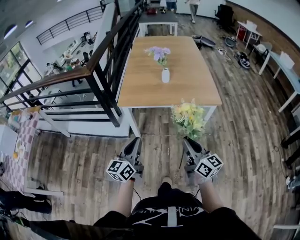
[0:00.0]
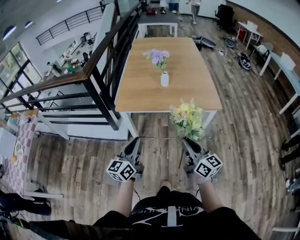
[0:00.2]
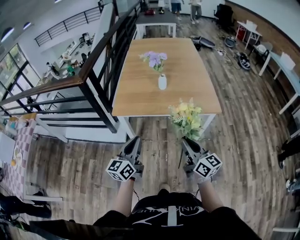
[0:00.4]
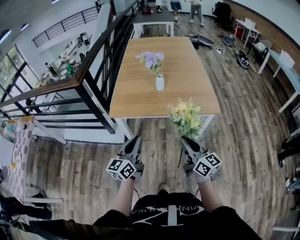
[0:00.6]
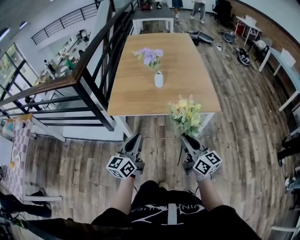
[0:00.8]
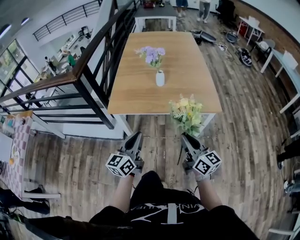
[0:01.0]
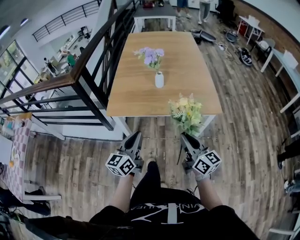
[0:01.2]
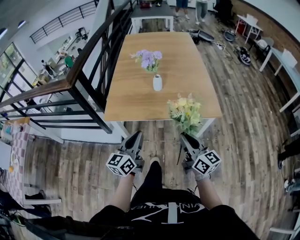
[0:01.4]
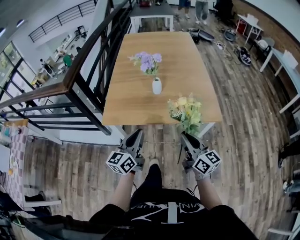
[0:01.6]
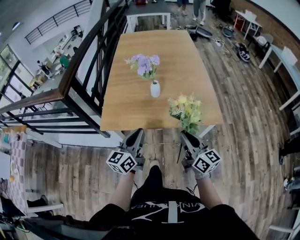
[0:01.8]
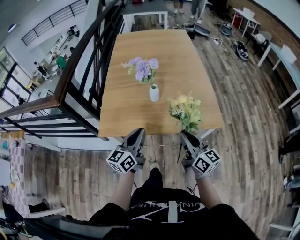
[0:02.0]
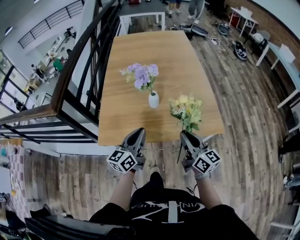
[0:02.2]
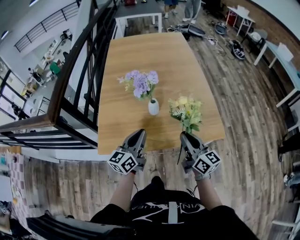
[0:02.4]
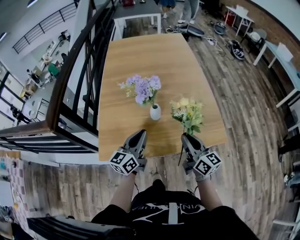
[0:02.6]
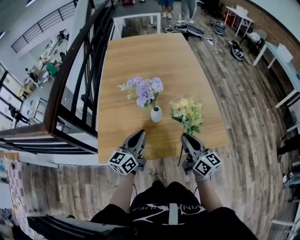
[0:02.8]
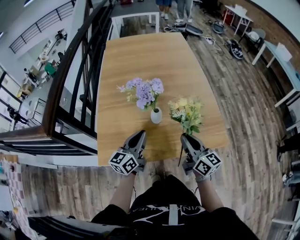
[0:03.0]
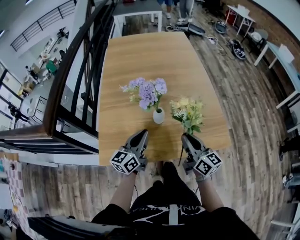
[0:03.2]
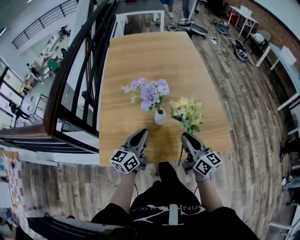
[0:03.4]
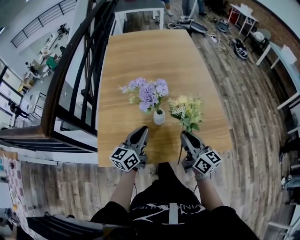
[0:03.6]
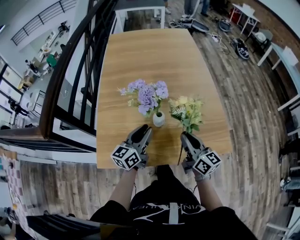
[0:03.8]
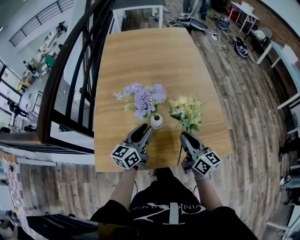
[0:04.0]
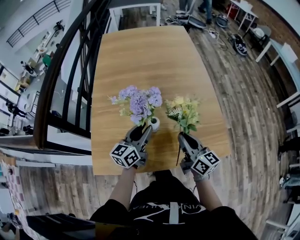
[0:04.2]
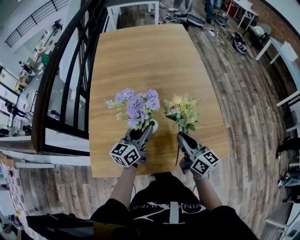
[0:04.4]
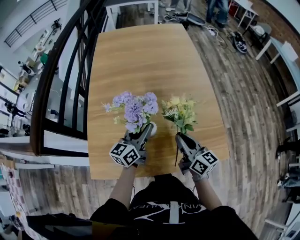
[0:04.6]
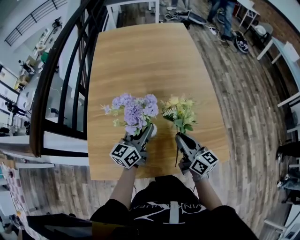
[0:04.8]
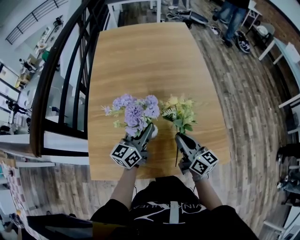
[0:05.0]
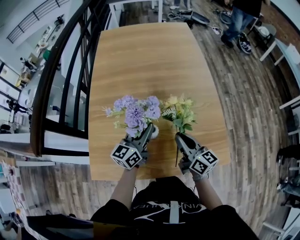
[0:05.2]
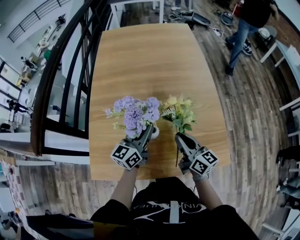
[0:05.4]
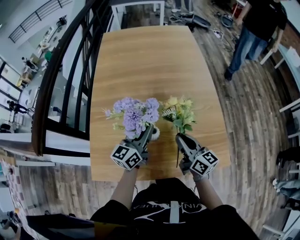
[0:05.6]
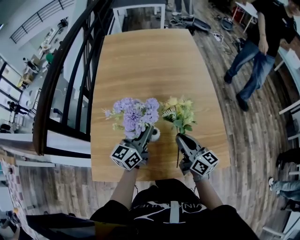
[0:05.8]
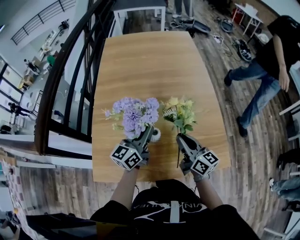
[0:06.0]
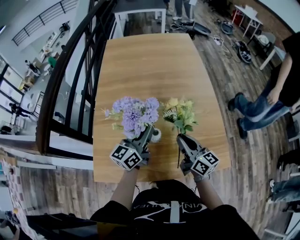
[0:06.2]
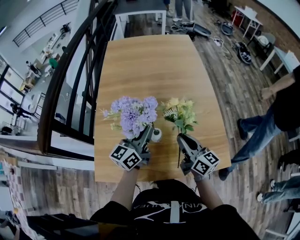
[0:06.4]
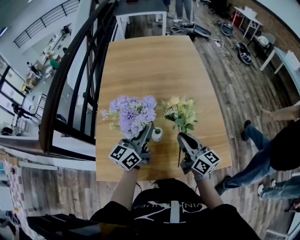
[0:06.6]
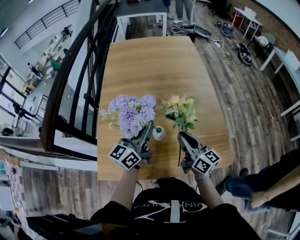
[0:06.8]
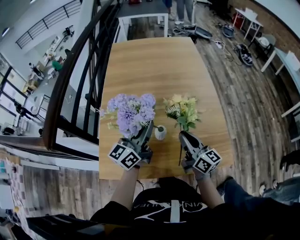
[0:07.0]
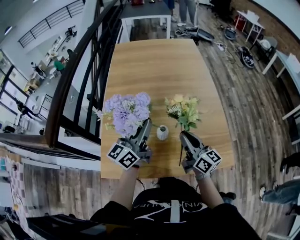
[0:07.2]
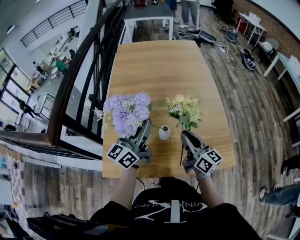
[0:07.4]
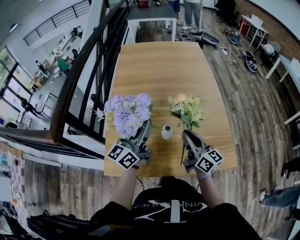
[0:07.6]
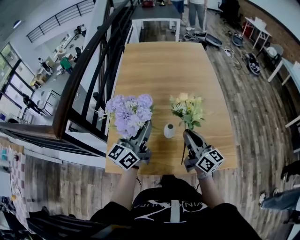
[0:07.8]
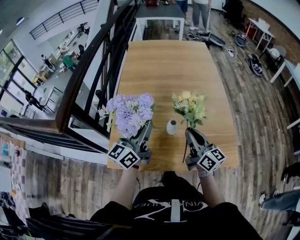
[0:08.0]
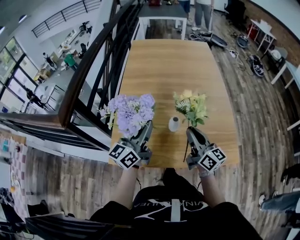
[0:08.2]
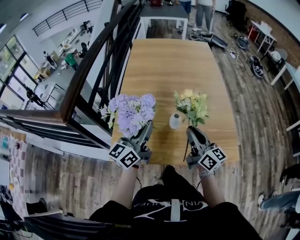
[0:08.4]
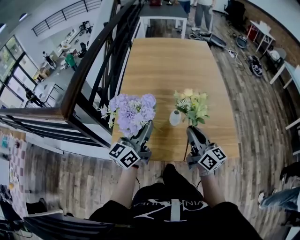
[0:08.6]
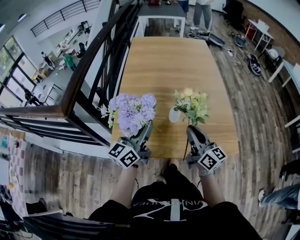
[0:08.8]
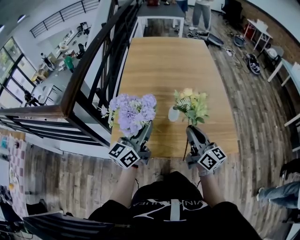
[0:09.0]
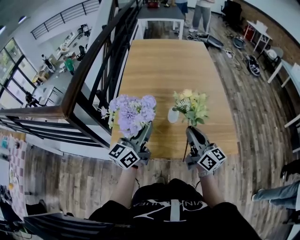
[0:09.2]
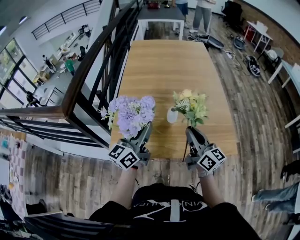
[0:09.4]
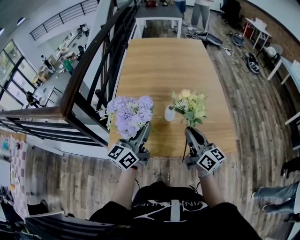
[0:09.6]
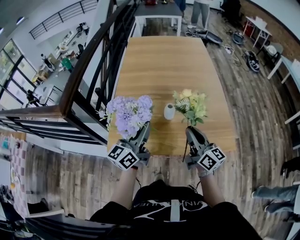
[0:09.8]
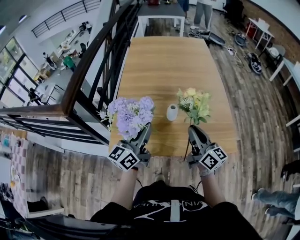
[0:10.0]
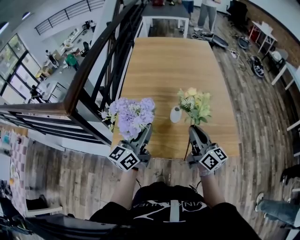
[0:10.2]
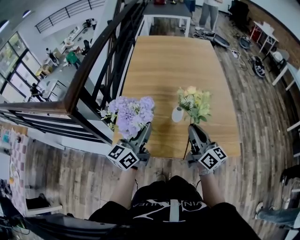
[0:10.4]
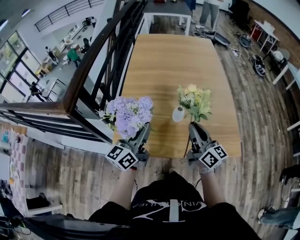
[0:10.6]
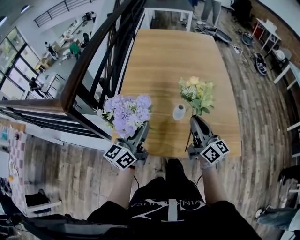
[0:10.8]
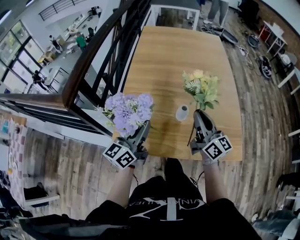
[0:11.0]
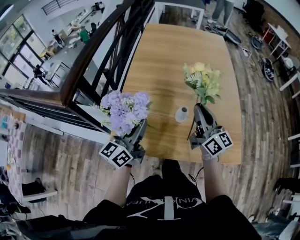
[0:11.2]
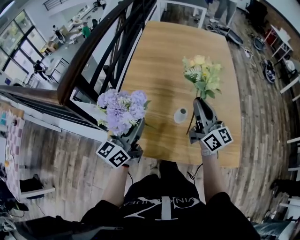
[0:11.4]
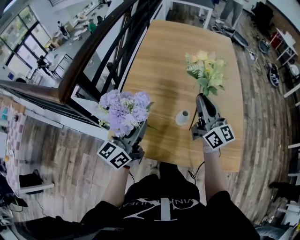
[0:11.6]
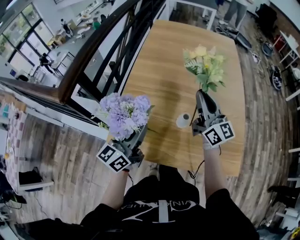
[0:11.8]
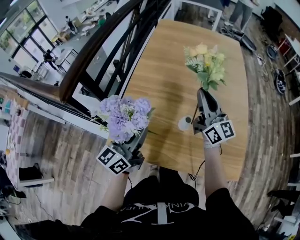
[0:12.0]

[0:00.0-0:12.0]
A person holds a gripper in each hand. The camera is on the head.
0:00.0 to 0:01.6: The right gripper moves forward, approximately 20 cm. The left gripper shifts about 20 cm forward and to the right.
0:01.6 to 0:03.0: Both grippers travel together forward, roughly 20 cm.
0:03.0 to 0:04.4: Both grippers move forward, about 10 cm. The left gripper opens its fingers.
0:04.4 to 0:06.0: The left gripper travels upward by approximately 5 cm, and closes its fingers.
0:06.0 to 0:07.6: The right gripper ends up about 5 cm from where it was, while the left gripper shifts approximately 10 cm upward and to the left.
0:07.6 to 0:09.0: Both grippers move backward, some 10 cm.
0:09.0 to 0:10.4: There are only small adjustments of the grippers.
0:10.4 to 0:12.0: The right gripper heads forward, covering approximately 20 cm, and changes its angle by approximately 20 degrees.

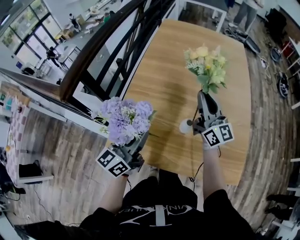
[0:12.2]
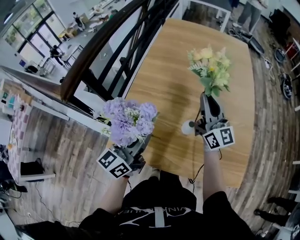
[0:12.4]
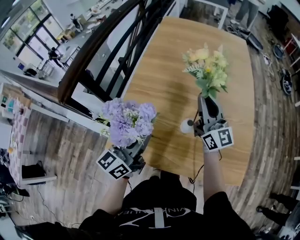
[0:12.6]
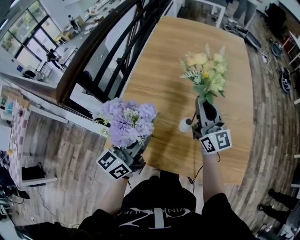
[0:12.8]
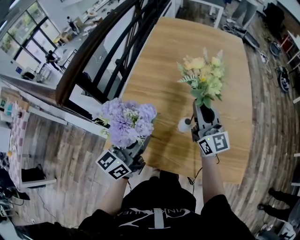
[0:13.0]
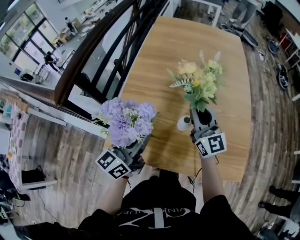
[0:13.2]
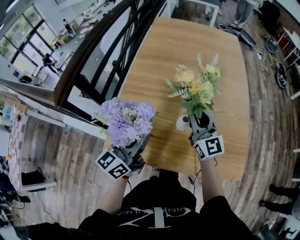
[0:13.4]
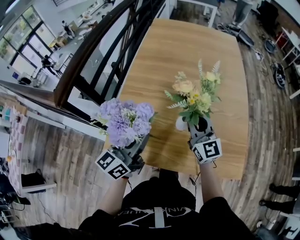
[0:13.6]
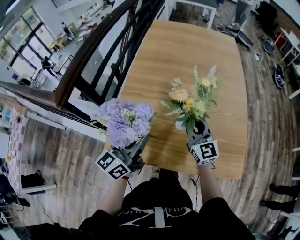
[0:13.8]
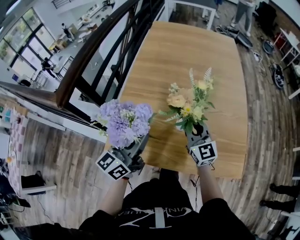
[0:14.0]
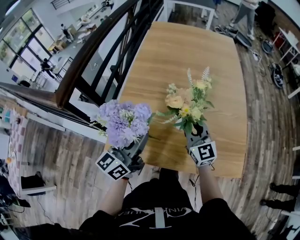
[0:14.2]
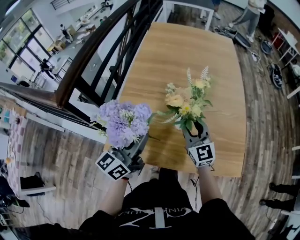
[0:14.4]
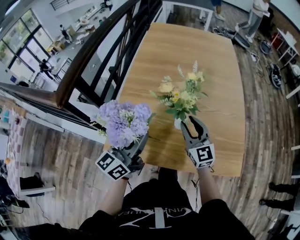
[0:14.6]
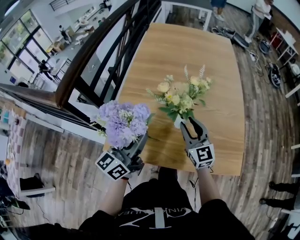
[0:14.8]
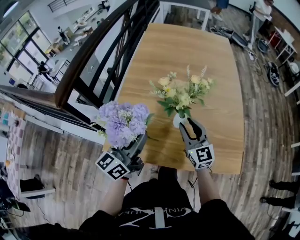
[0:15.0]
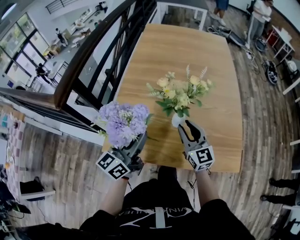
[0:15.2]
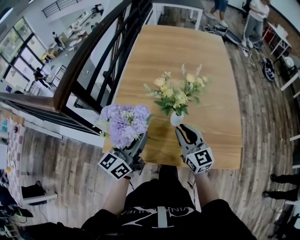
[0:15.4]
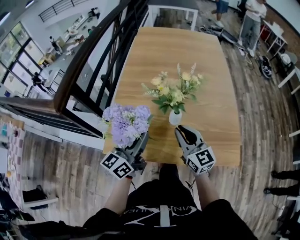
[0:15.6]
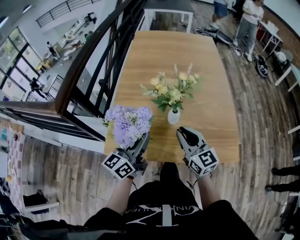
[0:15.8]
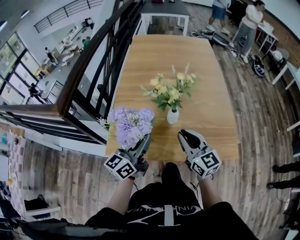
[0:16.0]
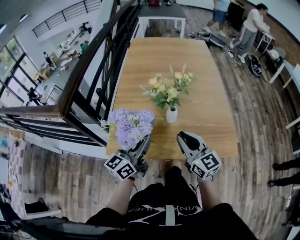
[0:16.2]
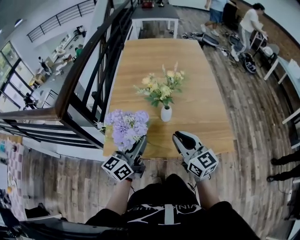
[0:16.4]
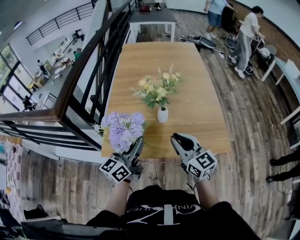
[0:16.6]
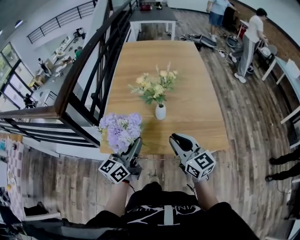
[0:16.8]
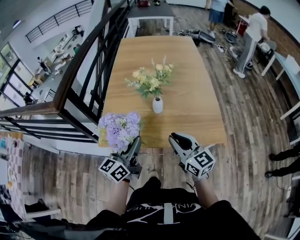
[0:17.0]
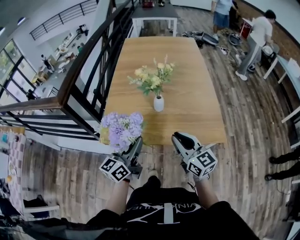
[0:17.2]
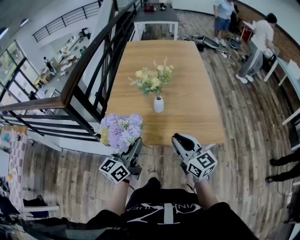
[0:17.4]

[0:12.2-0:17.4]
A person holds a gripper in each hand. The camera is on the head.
0:12.2 to 0:14.0: The right gripper goes roughly 10 cm downward and backward, and swivels approximately 30 degrees.
0:14.0 to 0:15.6: The right gripper goes approximately 10 cm backward.
0:15.6 to 0:17.4: Both grippers travel together backward, approximately 15 cm.

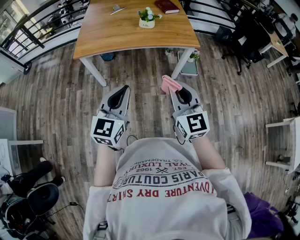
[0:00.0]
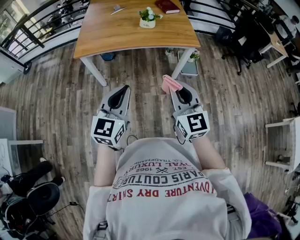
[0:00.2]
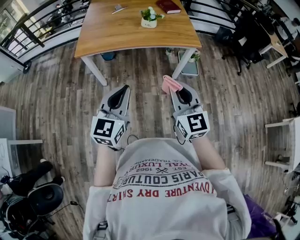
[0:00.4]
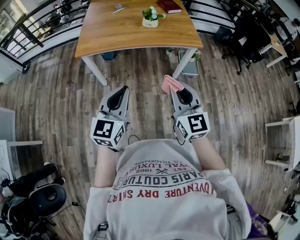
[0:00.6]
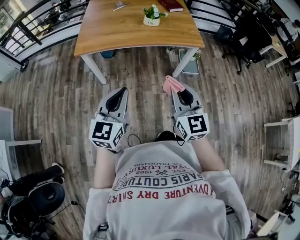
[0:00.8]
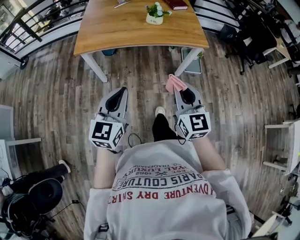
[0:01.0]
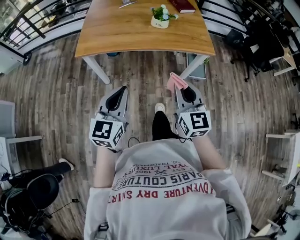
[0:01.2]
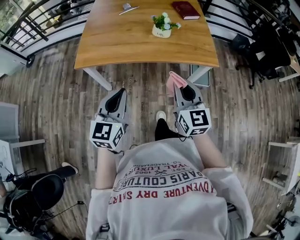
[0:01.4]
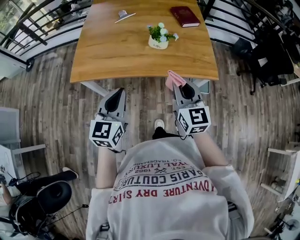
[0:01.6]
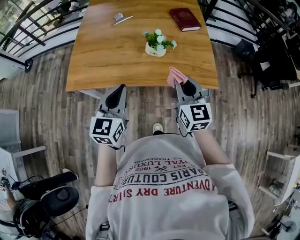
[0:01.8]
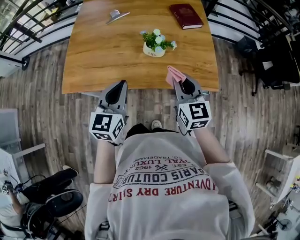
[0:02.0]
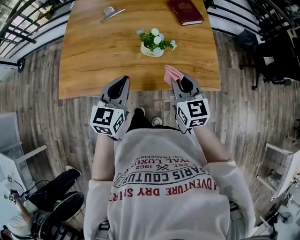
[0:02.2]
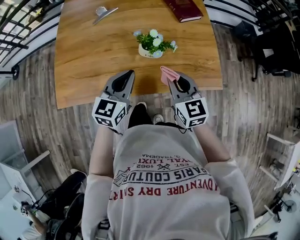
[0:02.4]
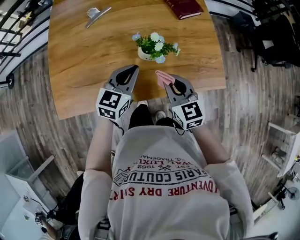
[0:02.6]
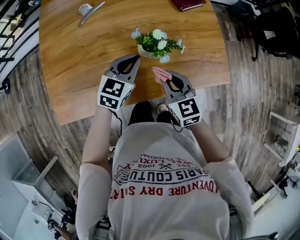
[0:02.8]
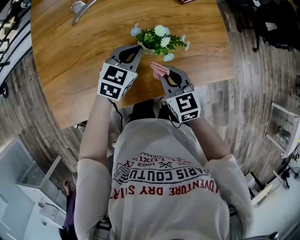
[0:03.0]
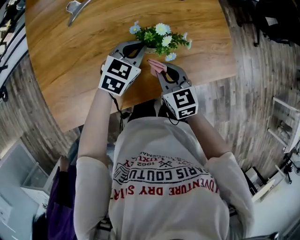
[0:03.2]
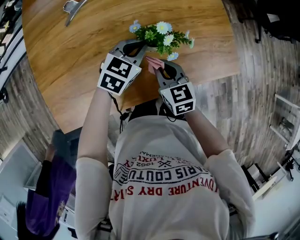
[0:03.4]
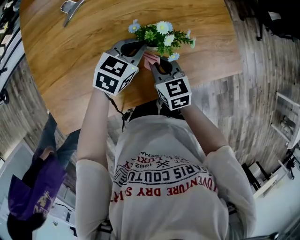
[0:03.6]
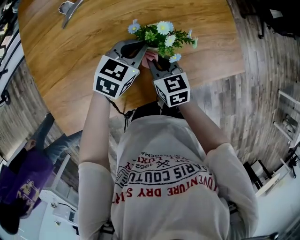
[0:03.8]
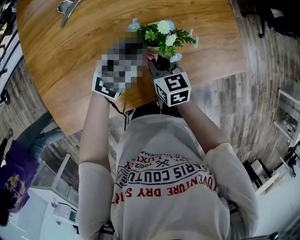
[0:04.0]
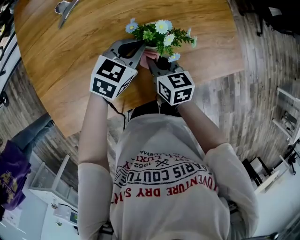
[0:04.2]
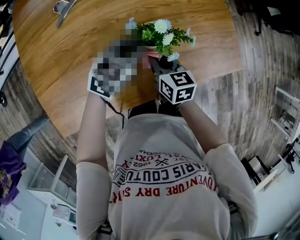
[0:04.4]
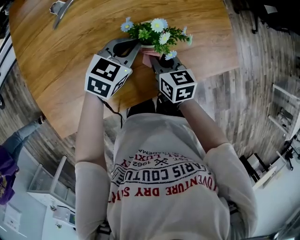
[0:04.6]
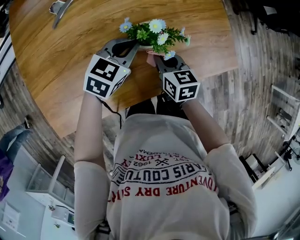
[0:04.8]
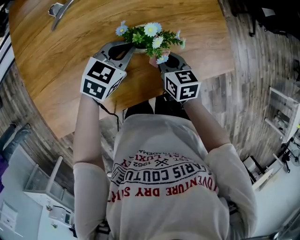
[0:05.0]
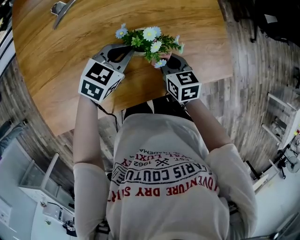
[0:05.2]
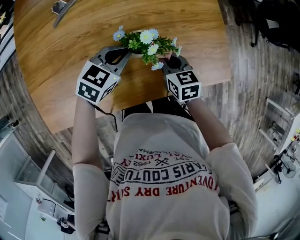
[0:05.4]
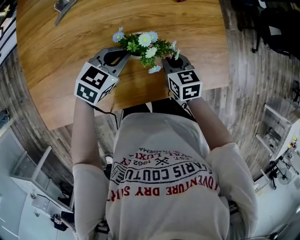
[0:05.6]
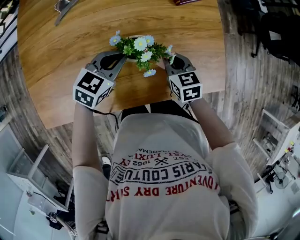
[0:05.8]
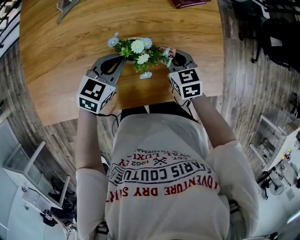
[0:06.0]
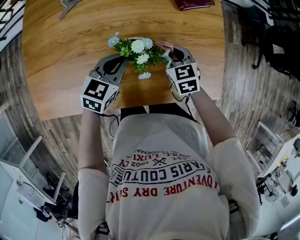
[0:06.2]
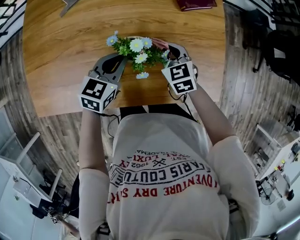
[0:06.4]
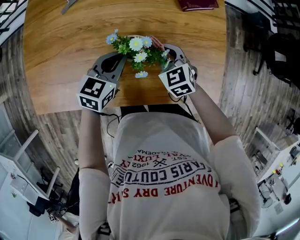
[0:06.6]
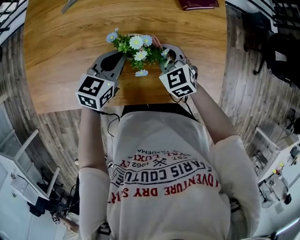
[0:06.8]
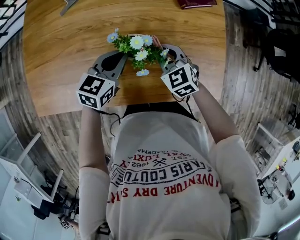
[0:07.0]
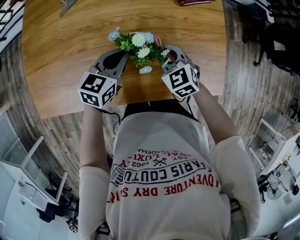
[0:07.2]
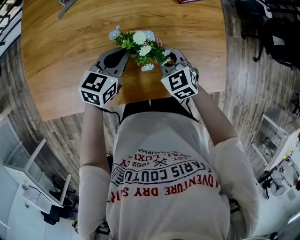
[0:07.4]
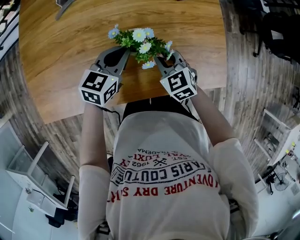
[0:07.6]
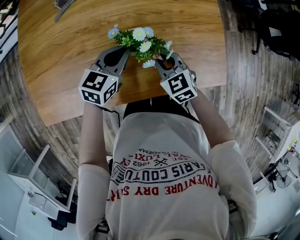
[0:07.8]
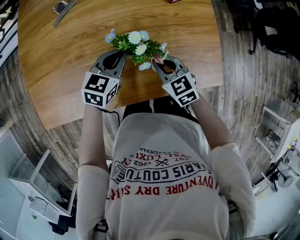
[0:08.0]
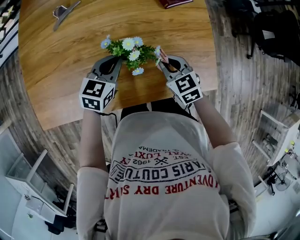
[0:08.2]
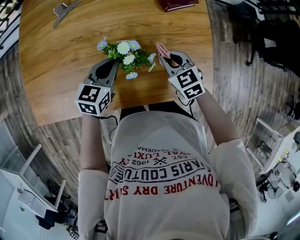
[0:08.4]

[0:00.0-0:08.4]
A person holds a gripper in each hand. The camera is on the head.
0:00.0 to 0:01.4: Both grippers move forward, approximately 20 cm.
0:01.4 to 0:02.8: The left gripper heads forward, covering about 40 cm, and turns by approximately 30 degrees, while the right gripper heads forward and downward, covering about 35 cm, and rotates some 20 degrees.
0:02.8 to 0:04.2: The left gripper changes place by roughly 5 cm, while the right gripper travels downward and to the left by some 10 cm, and changes its angle by about 30 degrees.
0:04.2 to 0:05.6: The right gripper heads to the right and forward, covering some 10 cm.
0:05.6 to 0:07.0: The right gripper changes its angle by some 40 degrees, while the left gripper changes its angle by roughly 20 degrees.
0:07.0 to 0:08.4: The right gripper shifts about 5 cm to the right.
